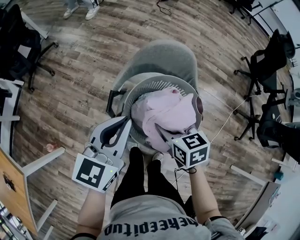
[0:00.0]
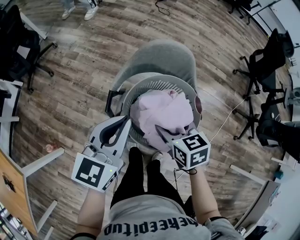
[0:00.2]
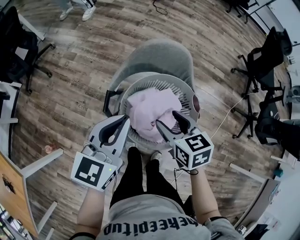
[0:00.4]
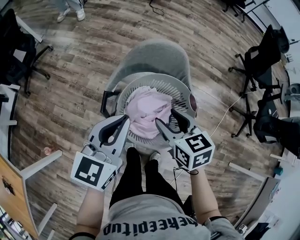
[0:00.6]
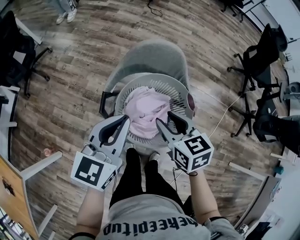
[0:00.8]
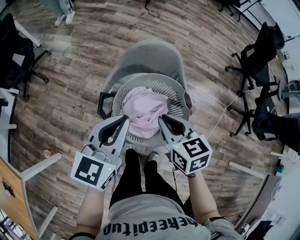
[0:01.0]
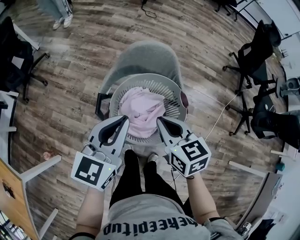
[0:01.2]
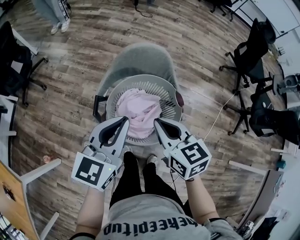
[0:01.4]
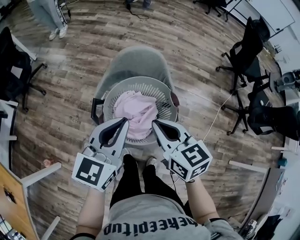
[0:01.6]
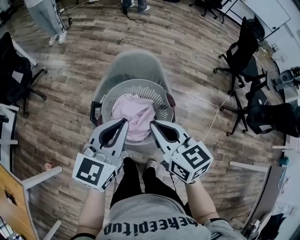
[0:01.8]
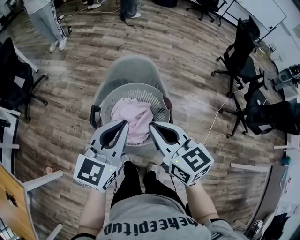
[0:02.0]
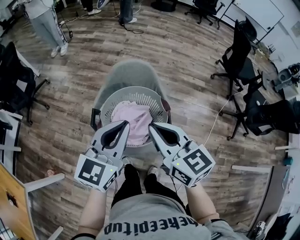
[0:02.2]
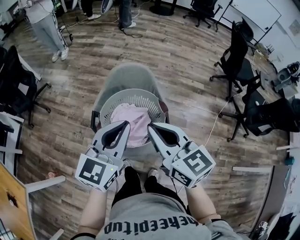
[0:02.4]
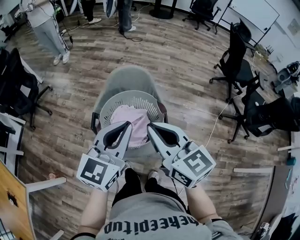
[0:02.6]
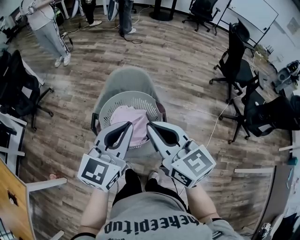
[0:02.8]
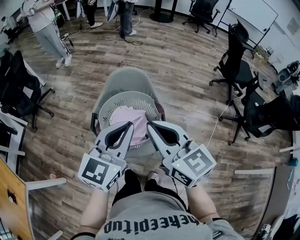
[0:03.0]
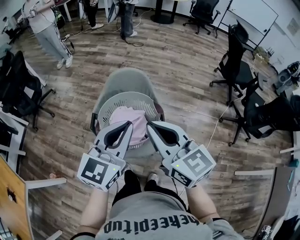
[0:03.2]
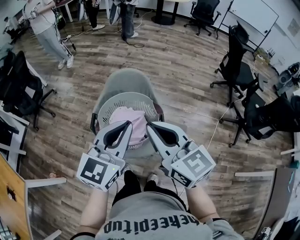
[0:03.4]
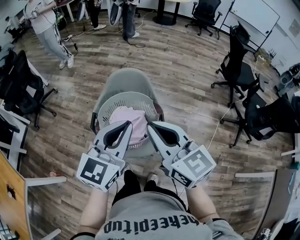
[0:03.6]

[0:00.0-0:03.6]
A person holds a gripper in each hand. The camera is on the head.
0:00.0 to 0:01.8: The right gripper travels upward and backward by about 15 cm, swivels about 20 degrees, and closes, while the left gripper is displaced to the right and upward by some 10 cm.
0:01.8 to 0:03.6: The left gripper moves to the right, upward and backward, some 15 cm; the right gripper moves upward, backward and to the right, roughly 15 cm.

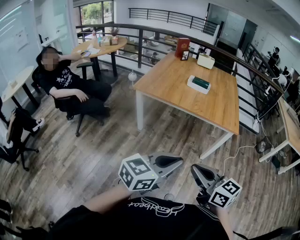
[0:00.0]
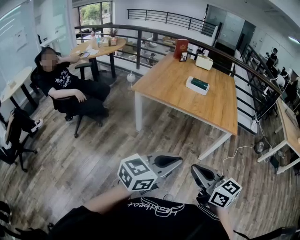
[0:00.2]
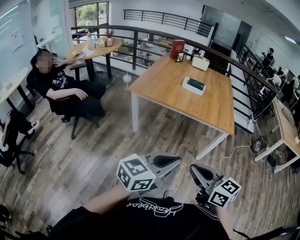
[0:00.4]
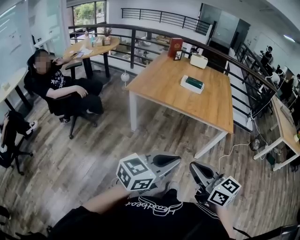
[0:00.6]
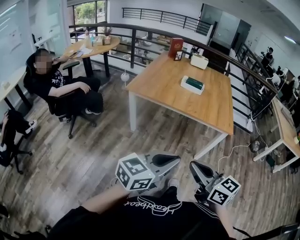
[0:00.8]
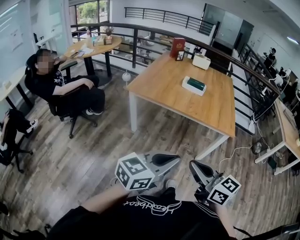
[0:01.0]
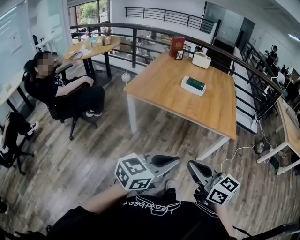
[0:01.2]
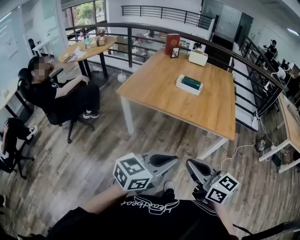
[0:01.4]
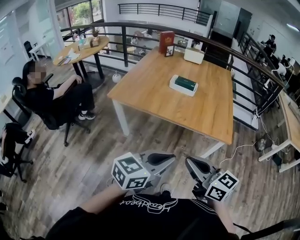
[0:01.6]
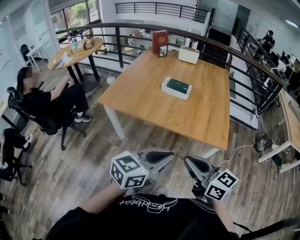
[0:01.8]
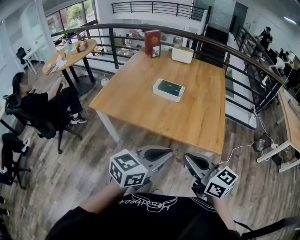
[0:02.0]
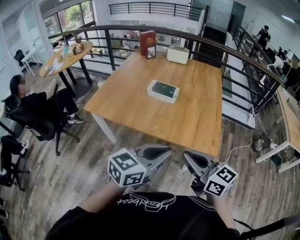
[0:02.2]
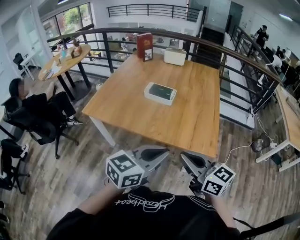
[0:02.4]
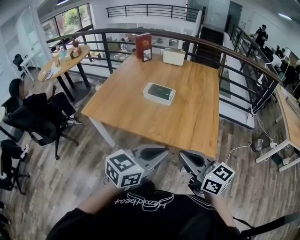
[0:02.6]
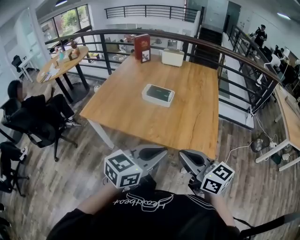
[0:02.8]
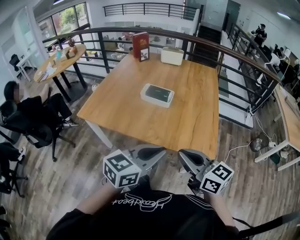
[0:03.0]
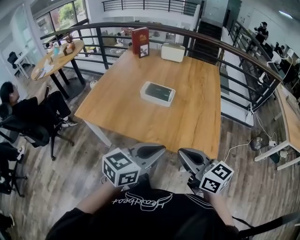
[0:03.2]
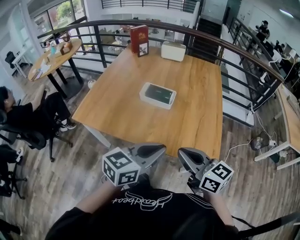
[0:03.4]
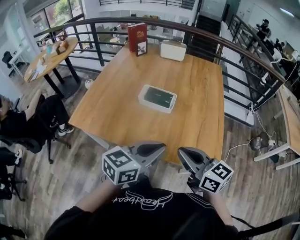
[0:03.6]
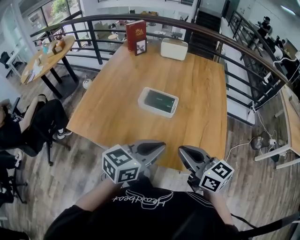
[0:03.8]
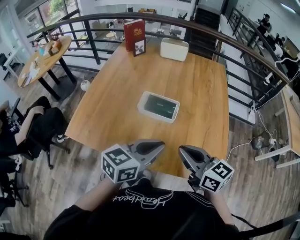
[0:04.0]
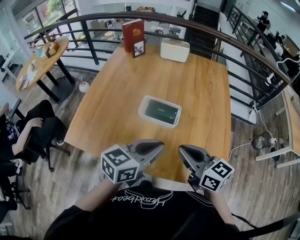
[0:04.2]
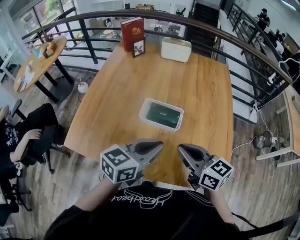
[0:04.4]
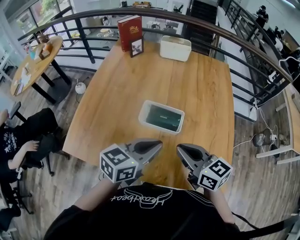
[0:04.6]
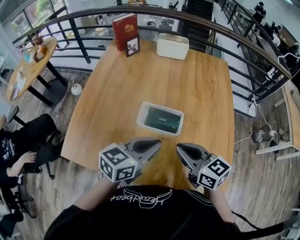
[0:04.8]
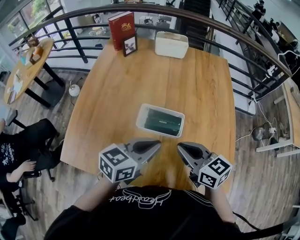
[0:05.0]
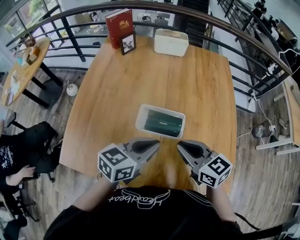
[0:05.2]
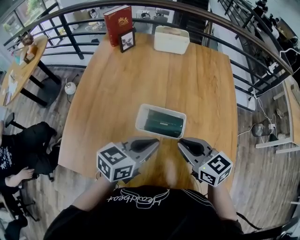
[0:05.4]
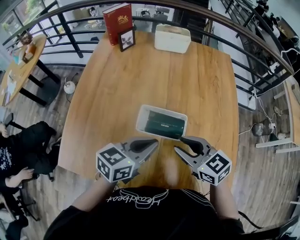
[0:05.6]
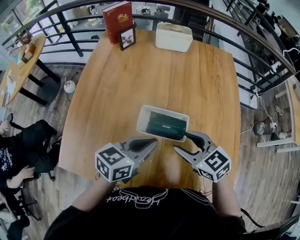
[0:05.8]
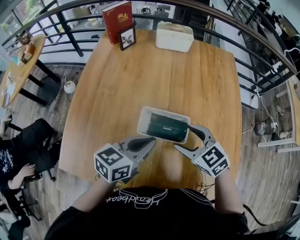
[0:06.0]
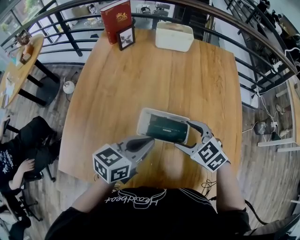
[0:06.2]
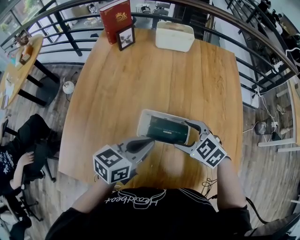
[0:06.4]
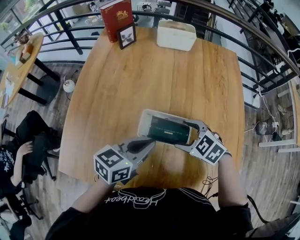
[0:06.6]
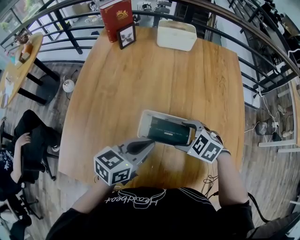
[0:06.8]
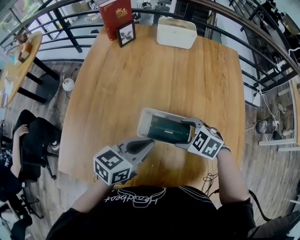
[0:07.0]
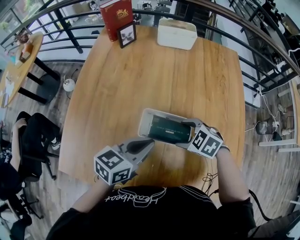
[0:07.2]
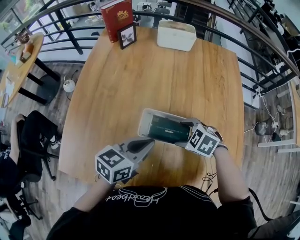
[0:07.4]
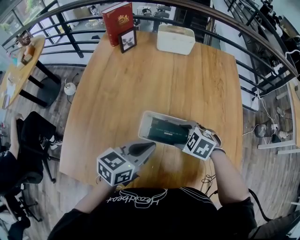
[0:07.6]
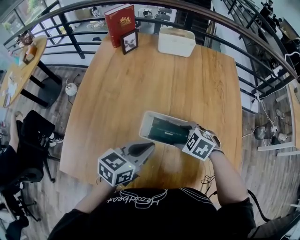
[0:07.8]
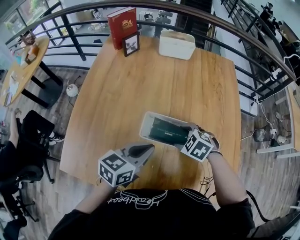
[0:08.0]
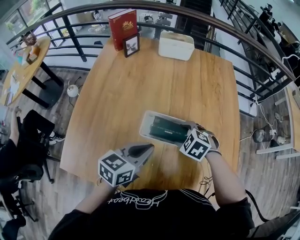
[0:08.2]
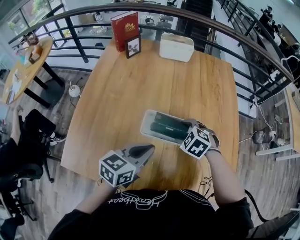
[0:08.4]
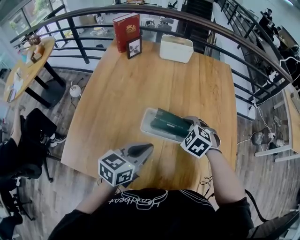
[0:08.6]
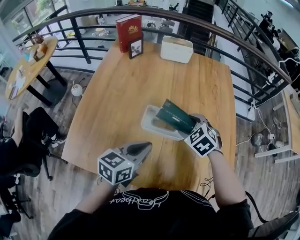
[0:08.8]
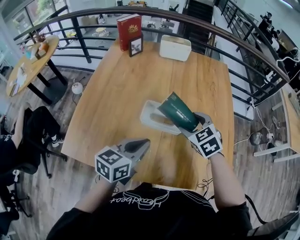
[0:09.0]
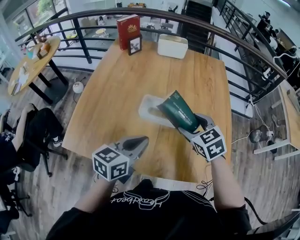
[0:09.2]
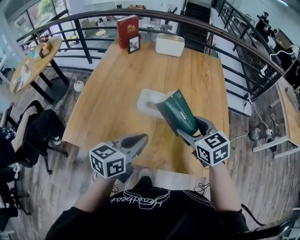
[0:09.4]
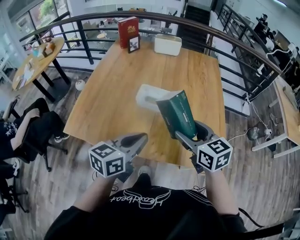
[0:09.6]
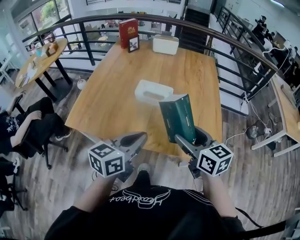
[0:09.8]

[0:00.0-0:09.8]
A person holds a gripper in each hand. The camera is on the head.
0:00.0 to 0:01.4: The left gripper moves forward and to the right, approximately 15 cm; the right gripper moves forward, some 15 cm.
0:01.4 to 0:02.8: The two grippers go roughly 35 cm forward and to the right.
0:02.8 to 0:04.2: The two grippers go about 35 cm forward.
0:04.2 to 0:05.6: The grippers both shift forward and downward by some 20 cm.
0:05.6 to 0:07.0: The left gripper ends up about 5 cm from where it was. Meanwhile the right gripper goes approximately 15 cm downward and forward, turns by approximately 40 degrees, and opens its fingers.
0:07.0 to 0:08.4: The left gripper is displaced backward by approximately 5 cm.
0:08.4 to 0:09.8: The right gripper goes about 40 cm backward and upward, and points its fingers about 50 degrees further upward; the left gripper moves backward, some 30 cm.

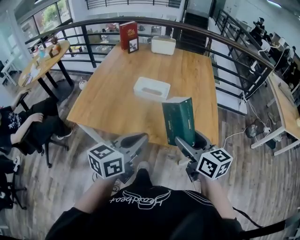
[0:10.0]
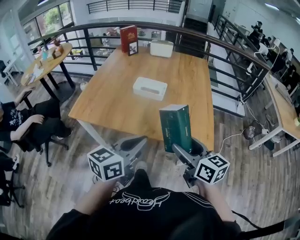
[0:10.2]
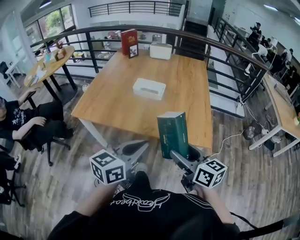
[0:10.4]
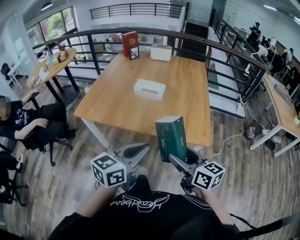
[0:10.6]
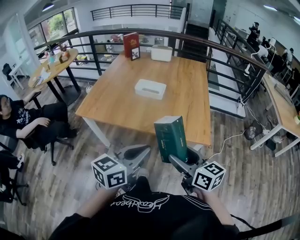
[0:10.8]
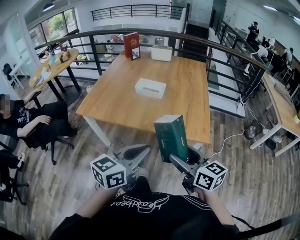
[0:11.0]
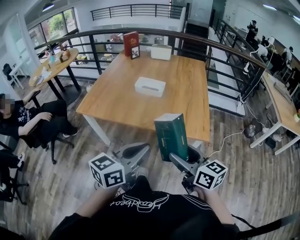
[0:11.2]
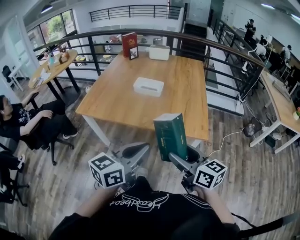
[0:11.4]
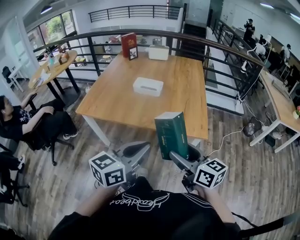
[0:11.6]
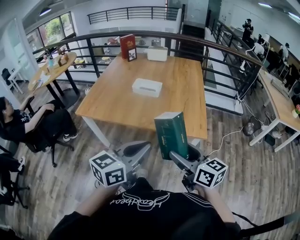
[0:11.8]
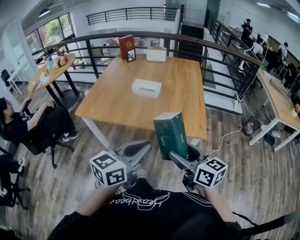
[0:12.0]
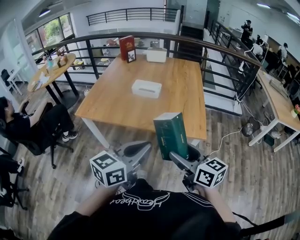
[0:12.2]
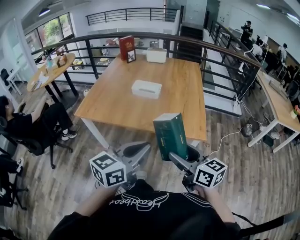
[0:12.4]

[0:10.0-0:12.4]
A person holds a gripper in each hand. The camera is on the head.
0:10.0 to 0:11.2: The two grippers go roughly 20 cm backward.
0:11.2 to 0:12.4: The grippers stay close to where they were, moving slightly.

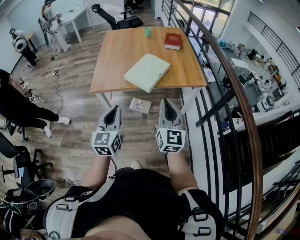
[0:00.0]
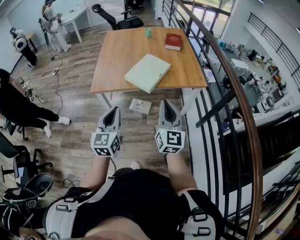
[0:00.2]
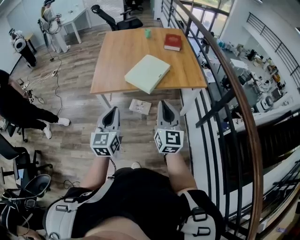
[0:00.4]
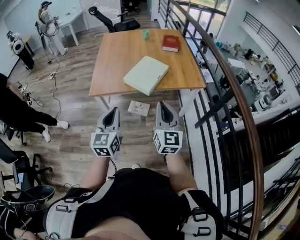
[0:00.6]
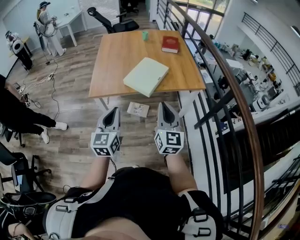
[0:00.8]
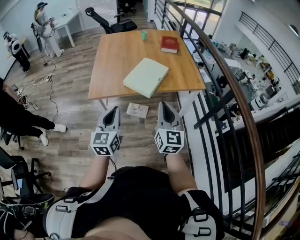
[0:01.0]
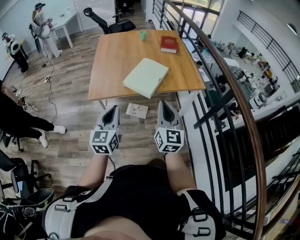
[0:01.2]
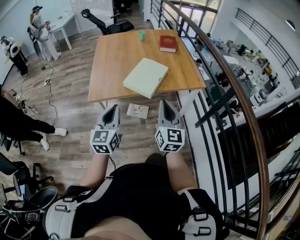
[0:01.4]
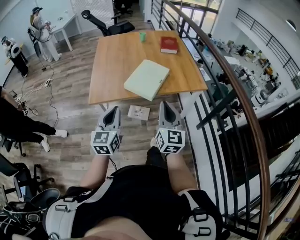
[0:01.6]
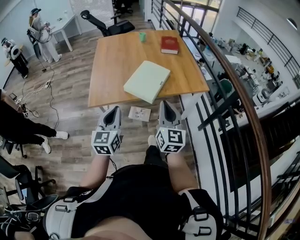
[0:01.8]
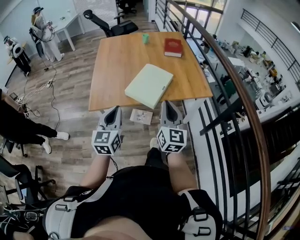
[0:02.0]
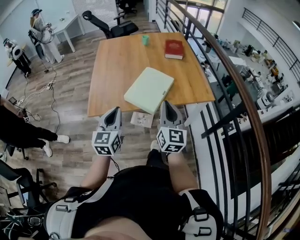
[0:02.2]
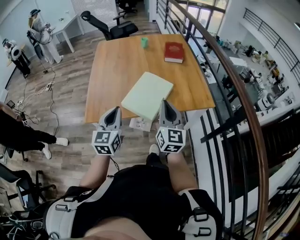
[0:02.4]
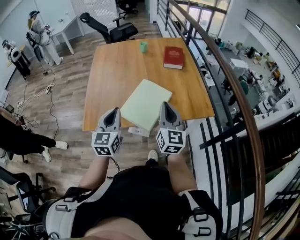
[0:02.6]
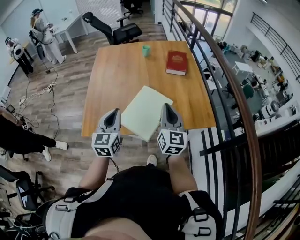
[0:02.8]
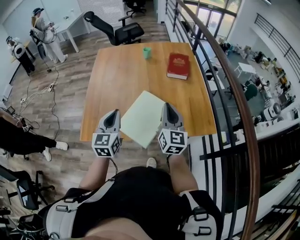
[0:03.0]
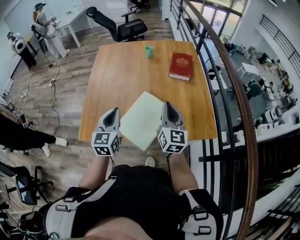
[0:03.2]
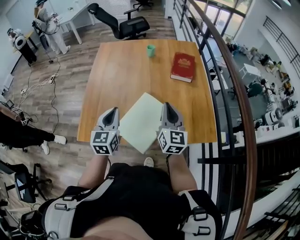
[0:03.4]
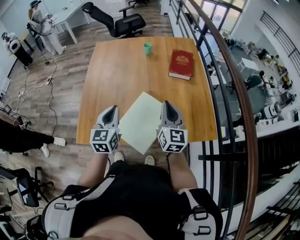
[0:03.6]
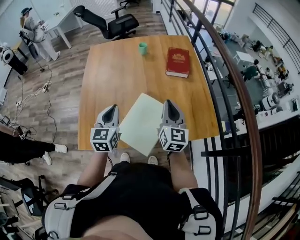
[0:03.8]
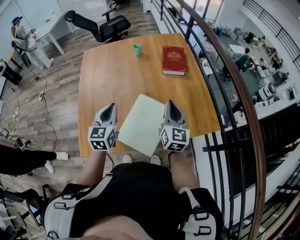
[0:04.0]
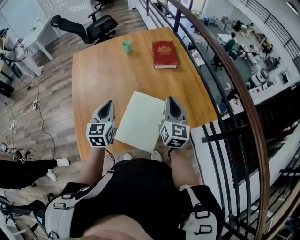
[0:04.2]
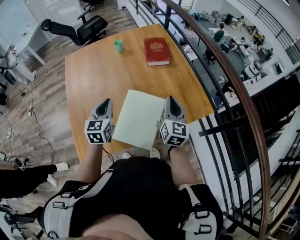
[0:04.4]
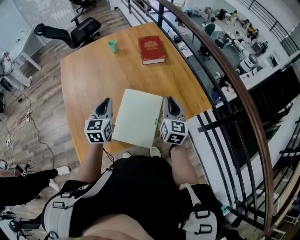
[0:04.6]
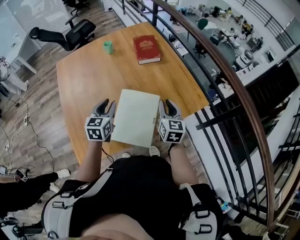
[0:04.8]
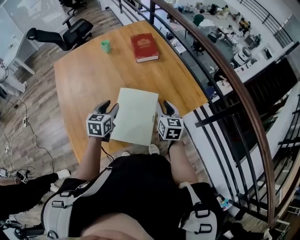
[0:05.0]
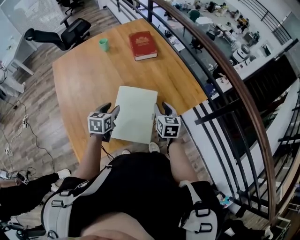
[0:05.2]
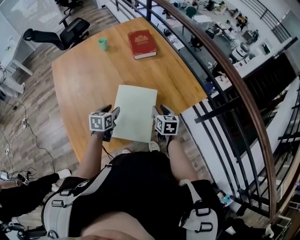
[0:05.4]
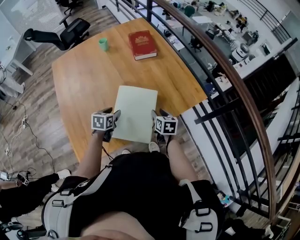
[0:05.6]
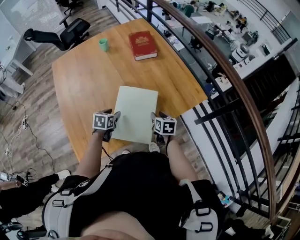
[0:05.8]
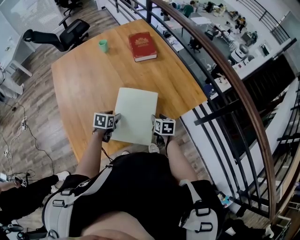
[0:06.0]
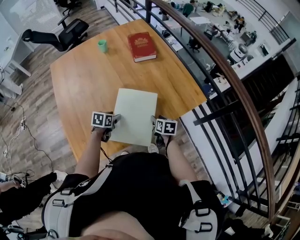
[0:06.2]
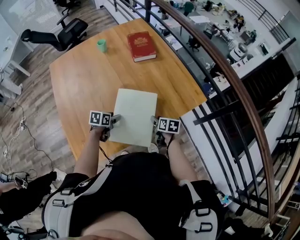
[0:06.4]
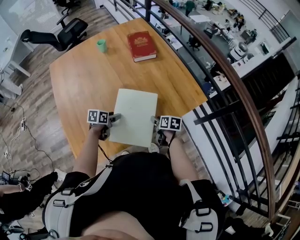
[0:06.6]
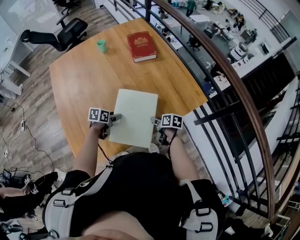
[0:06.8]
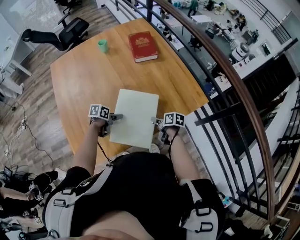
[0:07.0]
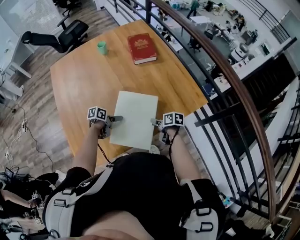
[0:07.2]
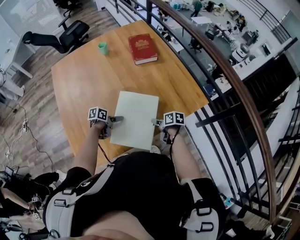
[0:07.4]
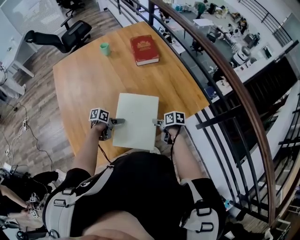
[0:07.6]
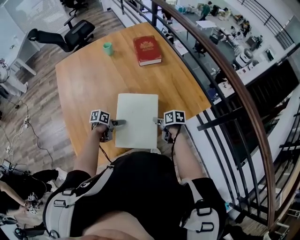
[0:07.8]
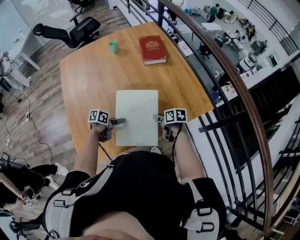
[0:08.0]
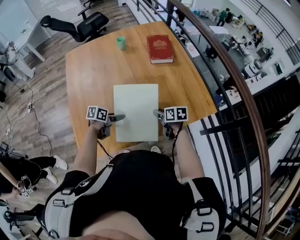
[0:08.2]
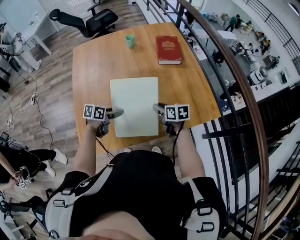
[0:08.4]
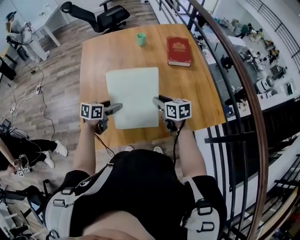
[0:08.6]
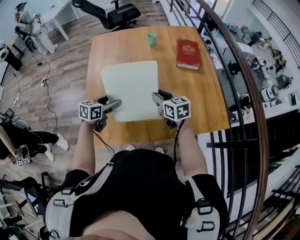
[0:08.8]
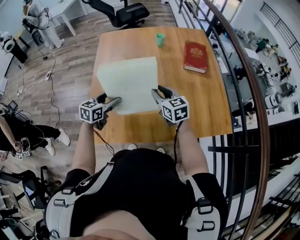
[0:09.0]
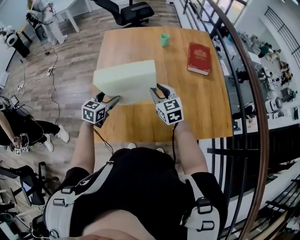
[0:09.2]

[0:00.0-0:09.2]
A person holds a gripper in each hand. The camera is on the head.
0:00.0 to 0:01.6: The right gripper heads to the left, covering about 5 cm; the left gripper goes about 10 cm forward and to the left.
0:01.6 to 0:03.0: Both grippers move forward, some 35 cm.
0:03.0 to 0:04.6: The right gripper goes about 5 cm downward, and changes its angle by some 30 degrees, while the left gripper travels forward by about 15 cm, and changes its angle by approximately 20 degrees.
0:04.6 to 0:06.2: Both grippers move downward, about 25 cm. The left gripper points its fingers roughly 30 degrees further downward, and opens its fingers. Meanwhile the right gripper points its fingers approximately 30 degrees further downward, and opens its fingers.
0:06.2 to 0:07.6: The left gripper swivels about 30 degrees. The right gripper rotates roughly 30 degrees.
0:07.6 to 0:09.2: The left gripper moves approximately 25 cm, and turns by about 60 degrees. The right gripper shifts by about 35 cm, and twists about 70 degrees counterclockwise, seen from behind.
